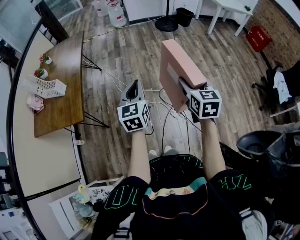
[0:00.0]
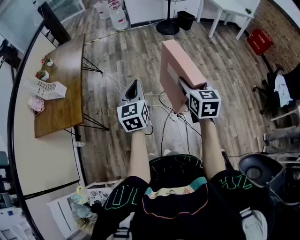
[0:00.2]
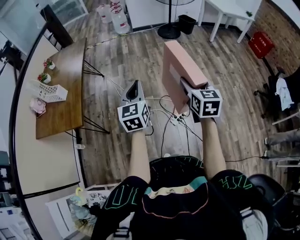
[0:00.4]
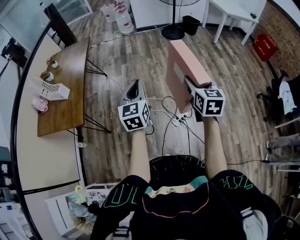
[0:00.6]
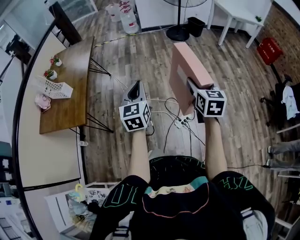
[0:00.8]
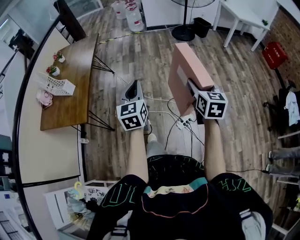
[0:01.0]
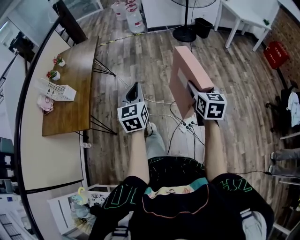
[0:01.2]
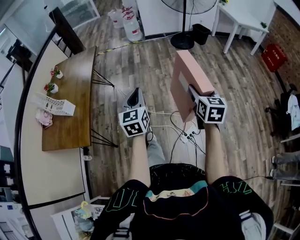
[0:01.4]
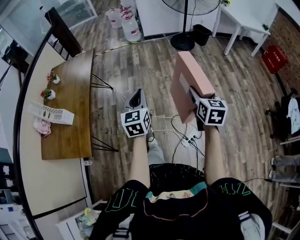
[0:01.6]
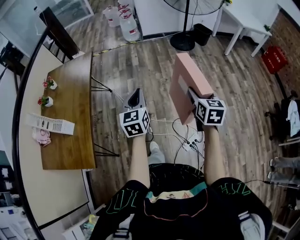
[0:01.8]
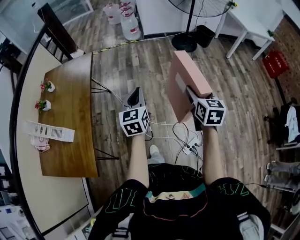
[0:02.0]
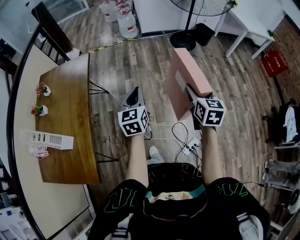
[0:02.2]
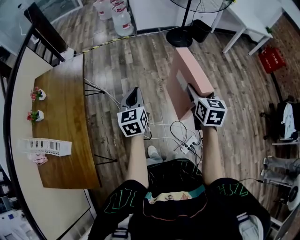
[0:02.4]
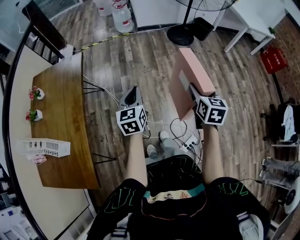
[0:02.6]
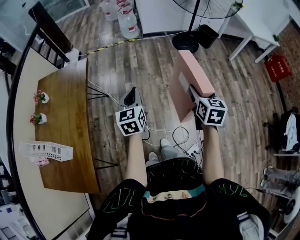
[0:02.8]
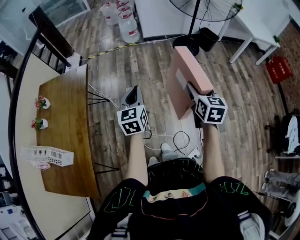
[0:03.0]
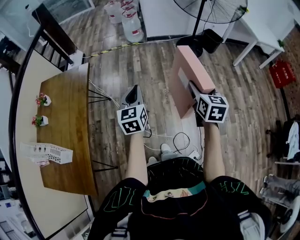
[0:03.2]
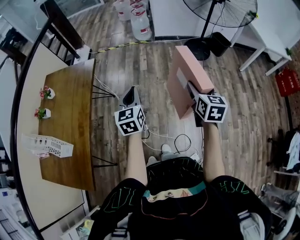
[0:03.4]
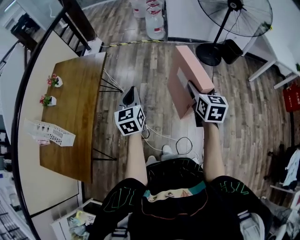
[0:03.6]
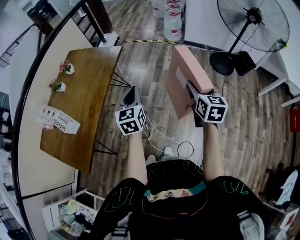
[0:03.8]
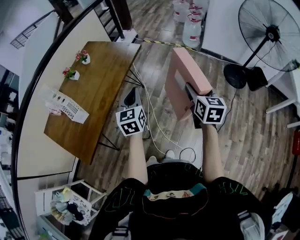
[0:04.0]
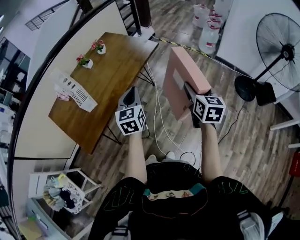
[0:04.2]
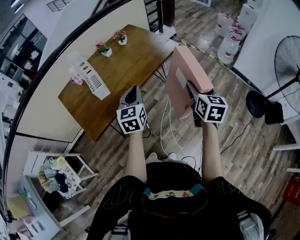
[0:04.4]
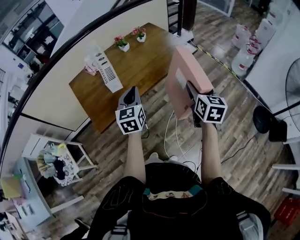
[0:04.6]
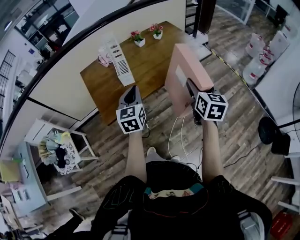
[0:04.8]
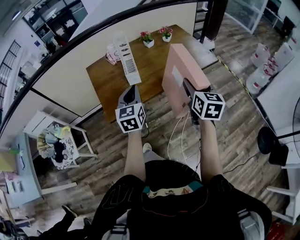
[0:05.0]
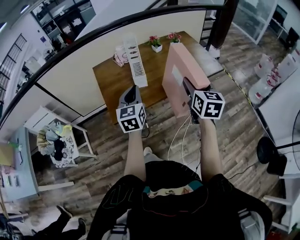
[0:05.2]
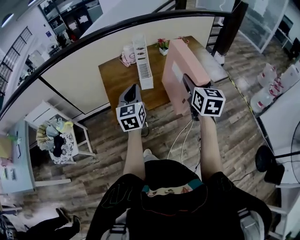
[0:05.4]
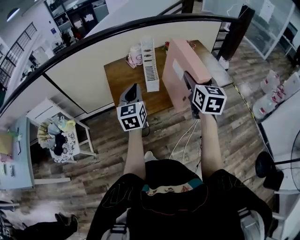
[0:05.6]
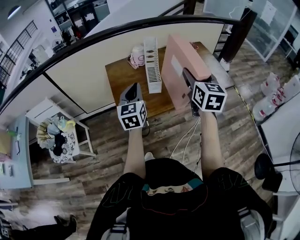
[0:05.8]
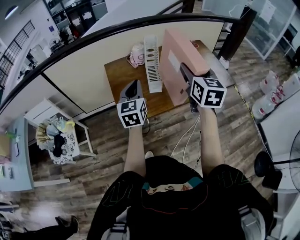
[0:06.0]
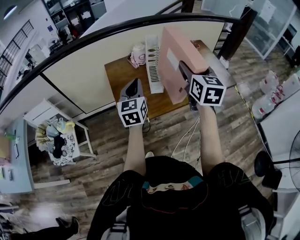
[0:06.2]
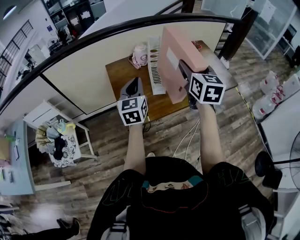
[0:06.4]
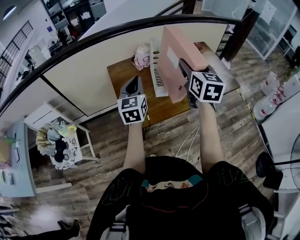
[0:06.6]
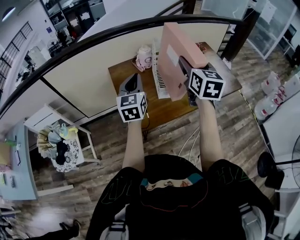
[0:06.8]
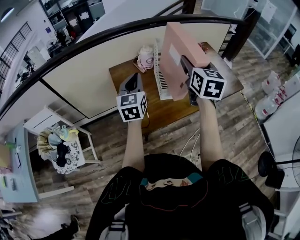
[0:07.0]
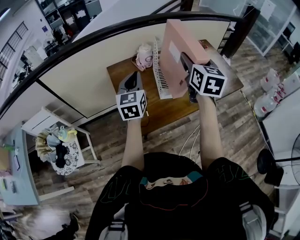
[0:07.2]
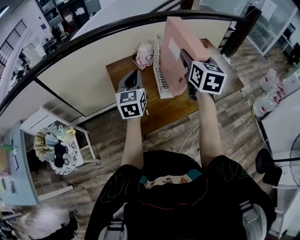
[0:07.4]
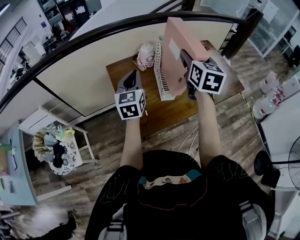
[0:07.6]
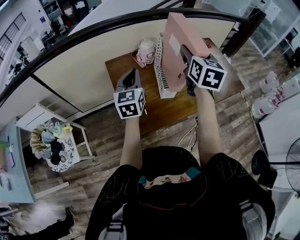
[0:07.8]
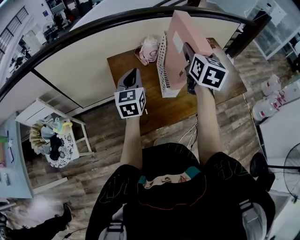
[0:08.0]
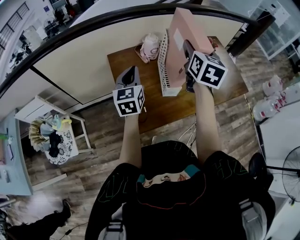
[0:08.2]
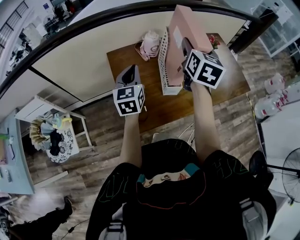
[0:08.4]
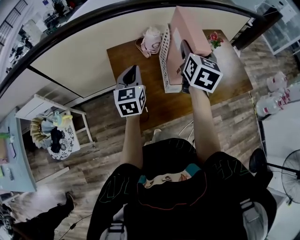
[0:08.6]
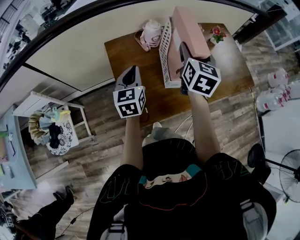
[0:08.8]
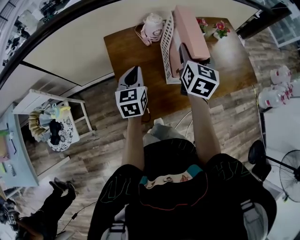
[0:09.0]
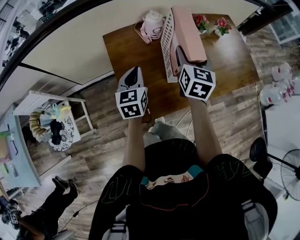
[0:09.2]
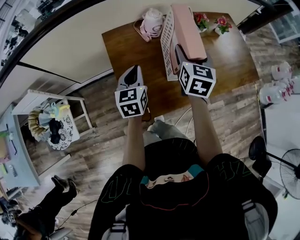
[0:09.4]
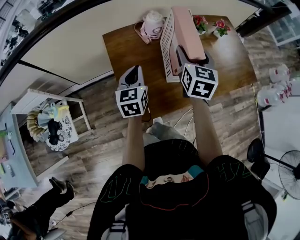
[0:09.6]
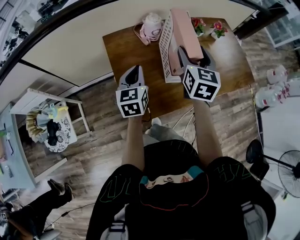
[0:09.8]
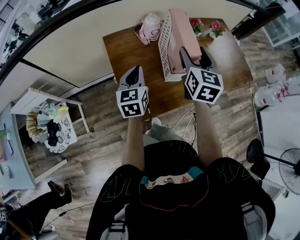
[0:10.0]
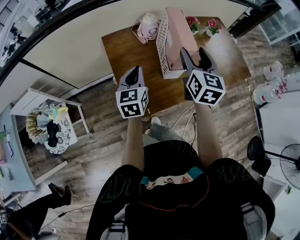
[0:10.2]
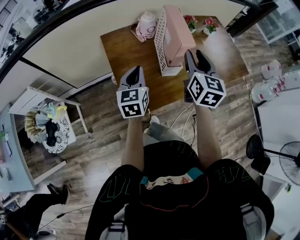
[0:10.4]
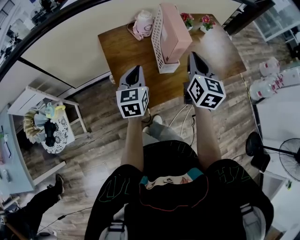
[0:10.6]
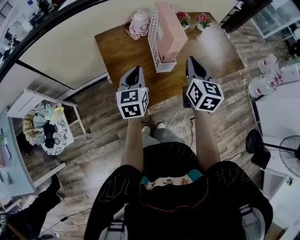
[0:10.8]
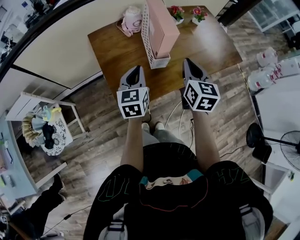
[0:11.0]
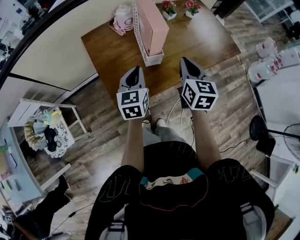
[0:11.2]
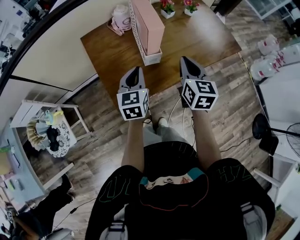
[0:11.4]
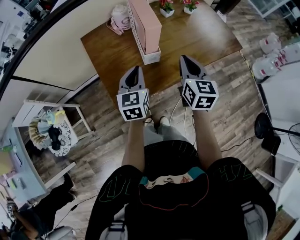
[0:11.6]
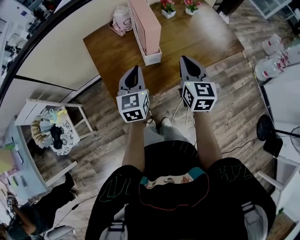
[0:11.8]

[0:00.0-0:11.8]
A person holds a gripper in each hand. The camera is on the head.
0:00.0 to 0:01.4: Both grippers travel together forward, roughly 15 cm.
0:01.4 to 0:03.0: Both grippers move forward, about 40 cm.
0:03.0 to 0:04.4: The left gripper ends up roughly 30 cm from where it was, and rotates roughly 50 degrees. Meanwhile the right gripper shifts by about 30 cm, and swivels some 50 degrees.
0:04.4 to 0:06.0: The right gripper changes place by about 40 cm, and turns by about 30 degrees, while the left gripper moves some 35 cm, and swivels approximately 30 degrees.
0:06.0 to 0:07.4: Both grippers travel together forward and to the left, some 15 cm.
0:07.4 to 0:08.8: The right gripper goes some 10 cm downward and forward. The left gripper travels downward by roughly 10 cm.
0:08.8 to 0:10.4: The right gripper is displaced backward by some 10 cm, and closes. The left gripper heads backward, covering approximately 5 cm.
0:10.4 to 0:11.8: The left gripper heads to the right, covering some 10 cm; the right gripper heads to the right, backward and downward, covering some 10 cm, and closes.

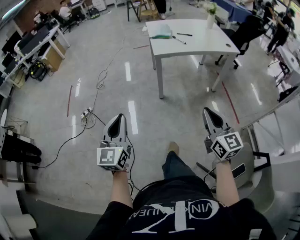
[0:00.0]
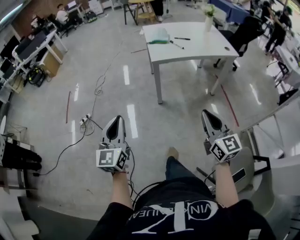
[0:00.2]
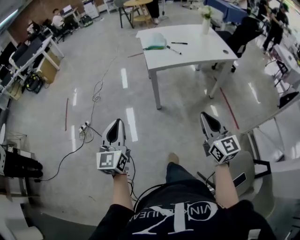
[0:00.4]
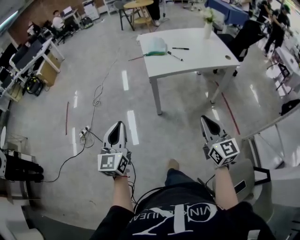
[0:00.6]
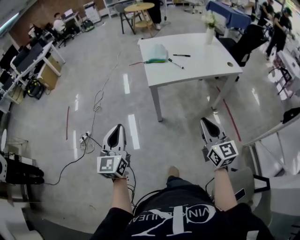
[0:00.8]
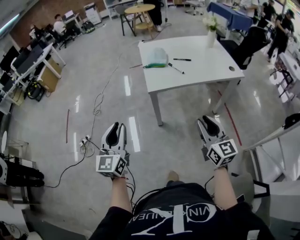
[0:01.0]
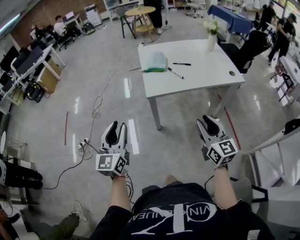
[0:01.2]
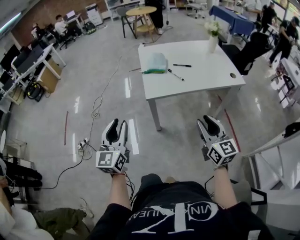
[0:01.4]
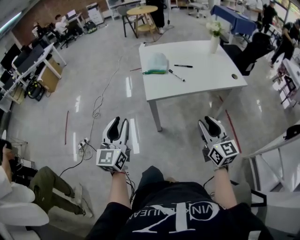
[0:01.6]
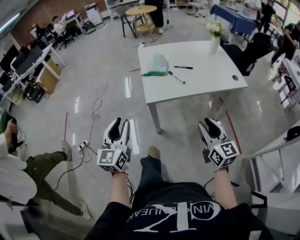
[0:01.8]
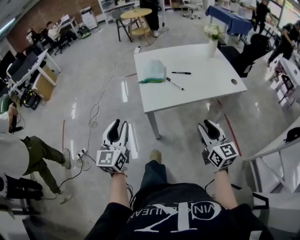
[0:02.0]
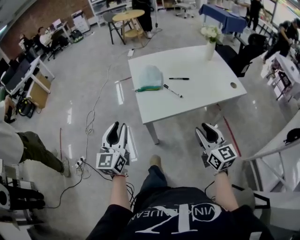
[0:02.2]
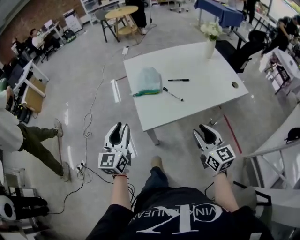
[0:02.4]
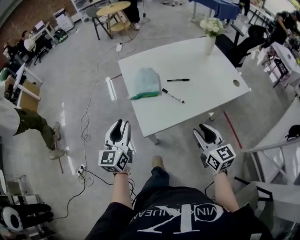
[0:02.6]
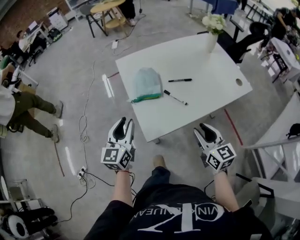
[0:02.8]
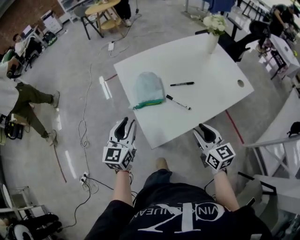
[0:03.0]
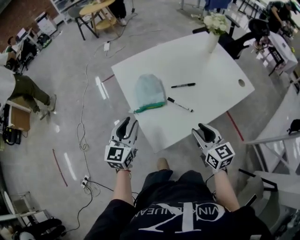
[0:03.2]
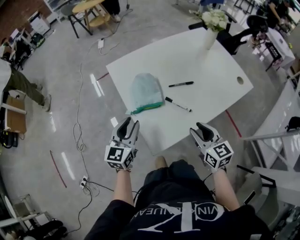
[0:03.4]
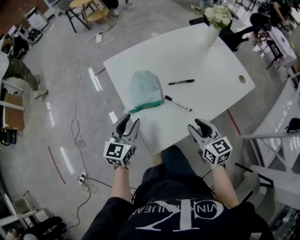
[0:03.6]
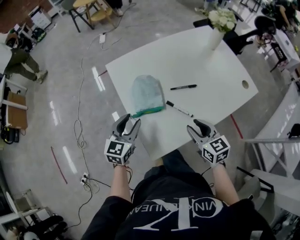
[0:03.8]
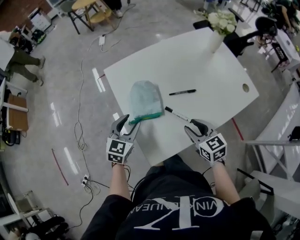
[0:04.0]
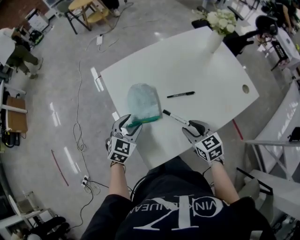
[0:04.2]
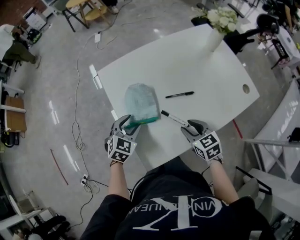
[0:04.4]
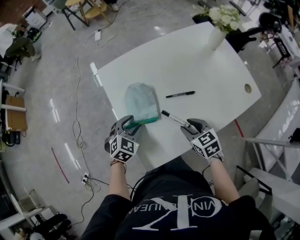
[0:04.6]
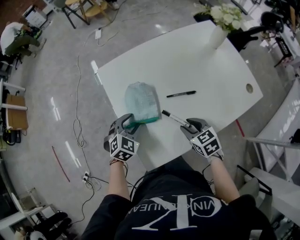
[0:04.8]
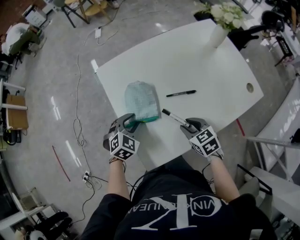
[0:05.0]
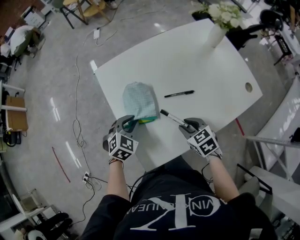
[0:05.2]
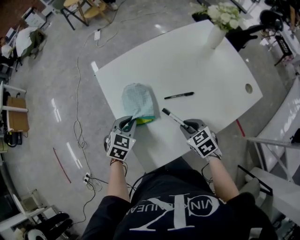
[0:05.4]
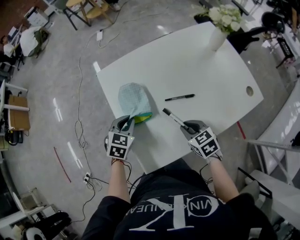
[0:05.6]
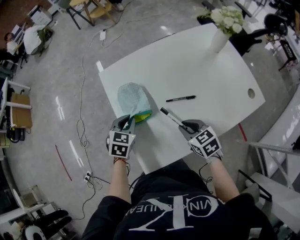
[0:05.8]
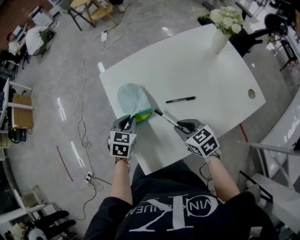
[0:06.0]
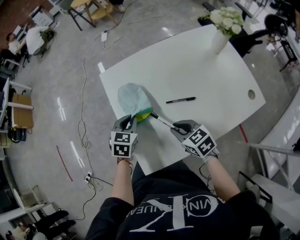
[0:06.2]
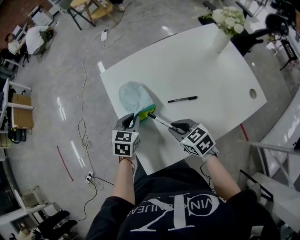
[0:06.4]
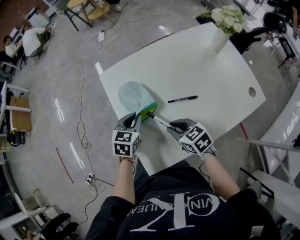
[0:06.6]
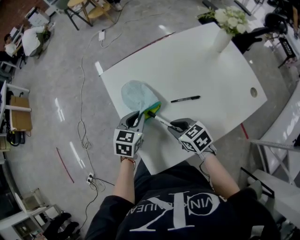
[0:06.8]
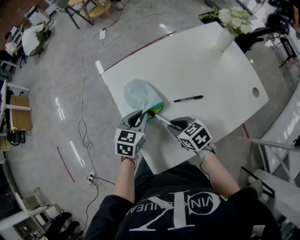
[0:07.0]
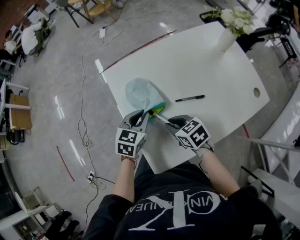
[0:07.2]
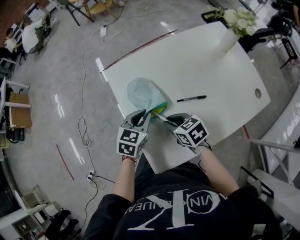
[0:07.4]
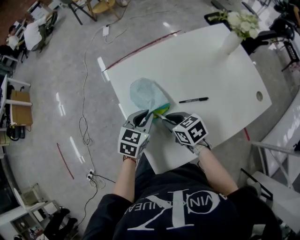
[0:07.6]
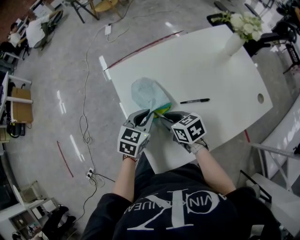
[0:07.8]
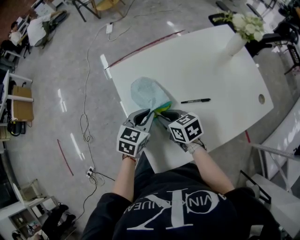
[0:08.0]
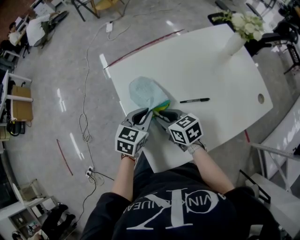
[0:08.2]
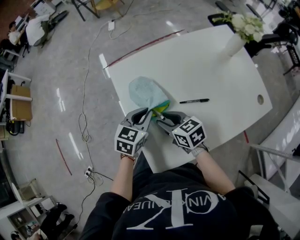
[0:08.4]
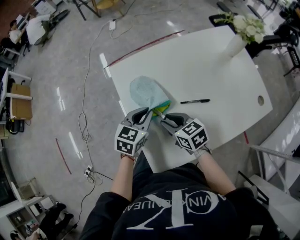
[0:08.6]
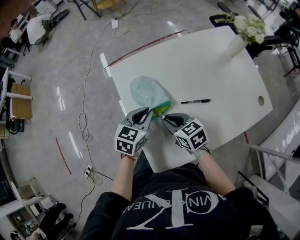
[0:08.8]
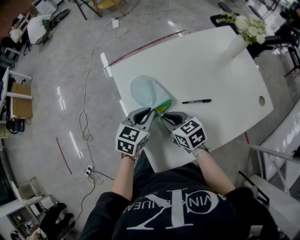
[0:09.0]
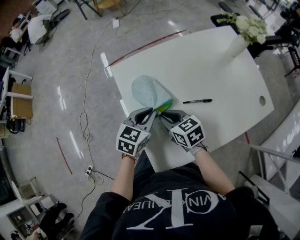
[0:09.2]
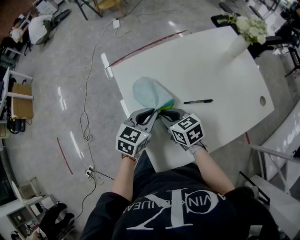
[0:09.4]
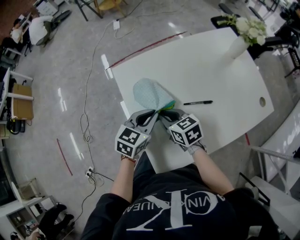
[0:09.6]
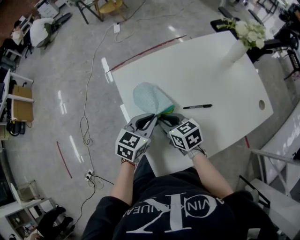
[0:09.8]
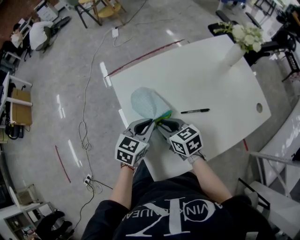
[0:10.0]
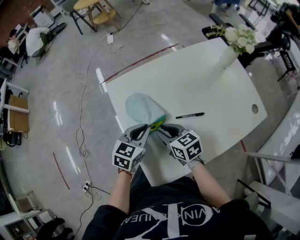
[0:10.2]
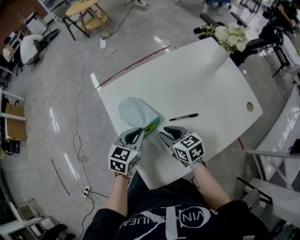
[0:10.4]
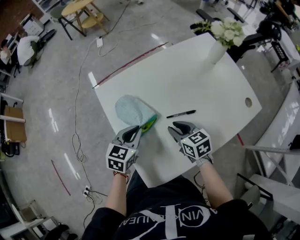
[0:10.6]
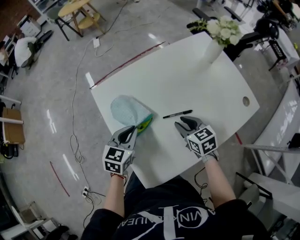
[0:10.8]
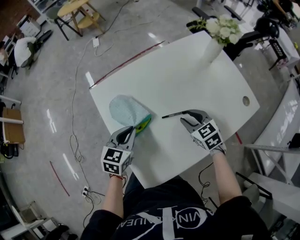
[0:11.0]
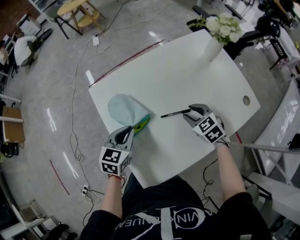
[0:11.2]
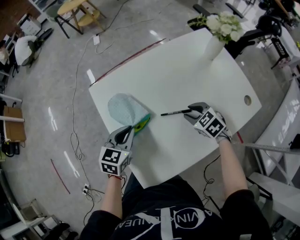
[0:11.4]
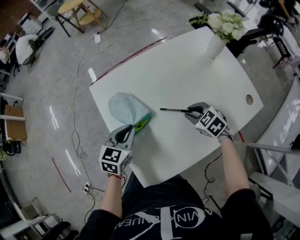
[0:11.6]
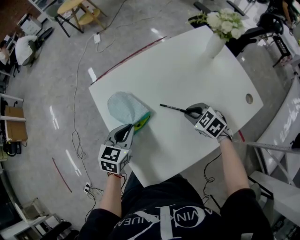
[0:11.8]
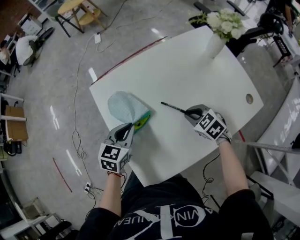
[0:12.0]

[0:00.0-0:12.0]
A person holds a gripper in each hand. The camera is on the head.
0:00.0 to 0:01.6: Both grippers move forward, about 30 cm. The left gripper opens; the right gripper opens.
0:01.6 to 0:03.0: The two grippers go about 30 cm forward. The left gripper rotates approximately 20 degrees.
0:03.0 to 0:04.4: The right gripper heads forward and downward, covering roughly 15 cm, and changes its angle by roughly 20 degrees, while the left gripper goes approximately 20 cm forward, downward and to the right, points its fingers some 30 degrees further downward, and opens up.
0:04.4 to 0:06.0: The left gripper rotates approximately 20 degrees, and closes its fingers; the right gripper closes.
0:06.0 to 0:07.6: The right gripper shifts approximately 10 cm to the left and forward.
0:07.6 to 0:10.4: The grippers make only small movements.
0:10.4 to 0:12.0: The right gripper heads to the right, covering roughly 15 cm, and turns by roughly 30 degrees.
